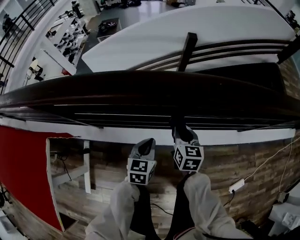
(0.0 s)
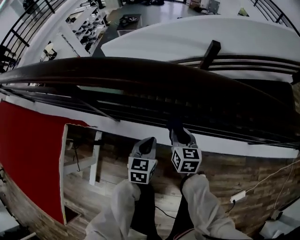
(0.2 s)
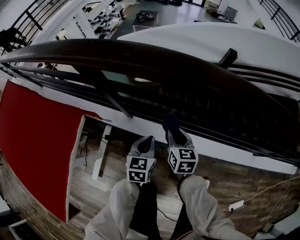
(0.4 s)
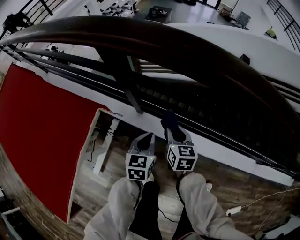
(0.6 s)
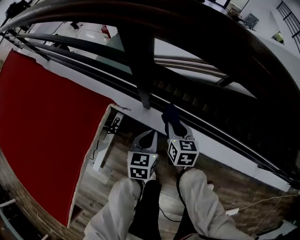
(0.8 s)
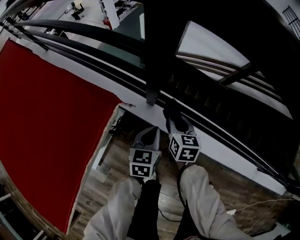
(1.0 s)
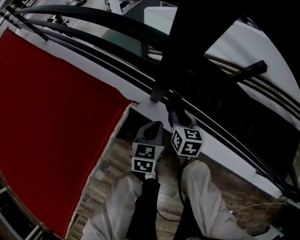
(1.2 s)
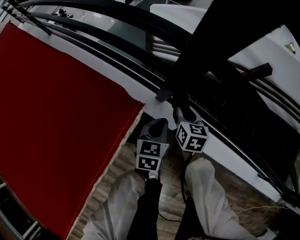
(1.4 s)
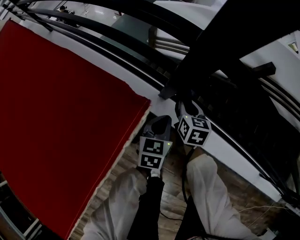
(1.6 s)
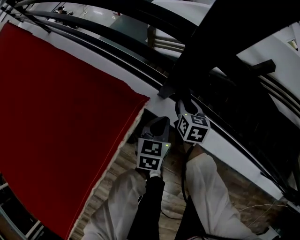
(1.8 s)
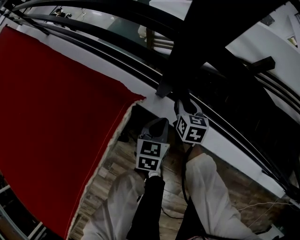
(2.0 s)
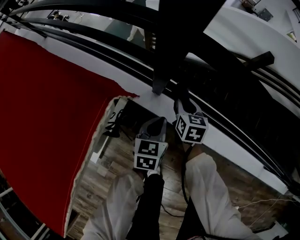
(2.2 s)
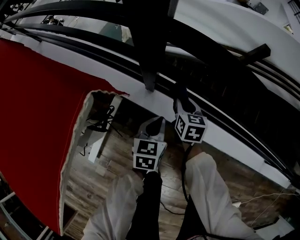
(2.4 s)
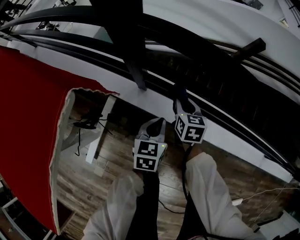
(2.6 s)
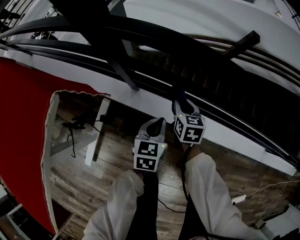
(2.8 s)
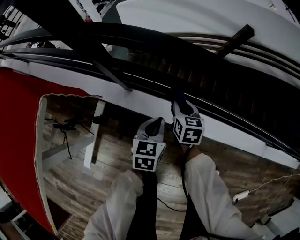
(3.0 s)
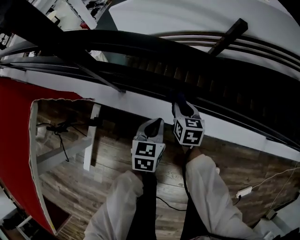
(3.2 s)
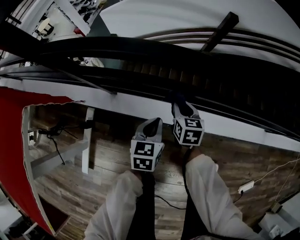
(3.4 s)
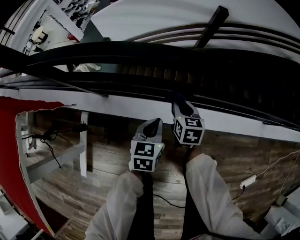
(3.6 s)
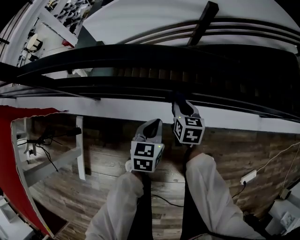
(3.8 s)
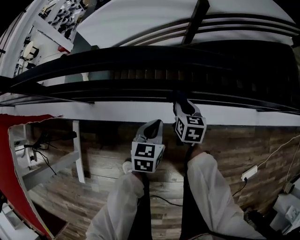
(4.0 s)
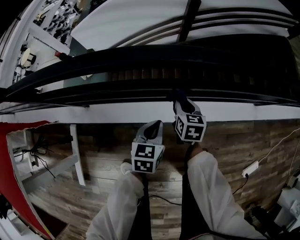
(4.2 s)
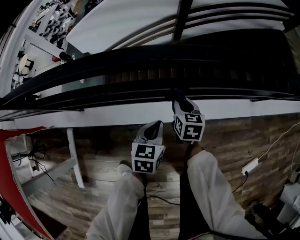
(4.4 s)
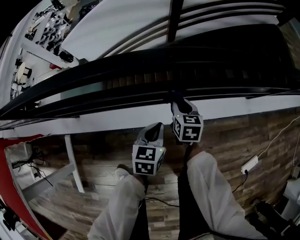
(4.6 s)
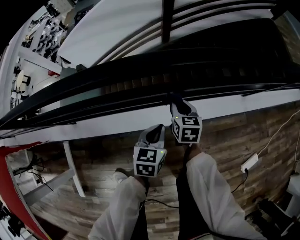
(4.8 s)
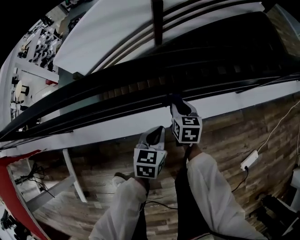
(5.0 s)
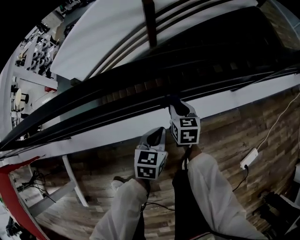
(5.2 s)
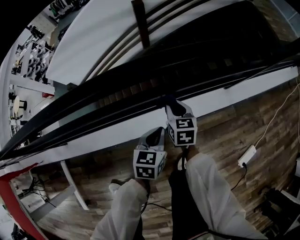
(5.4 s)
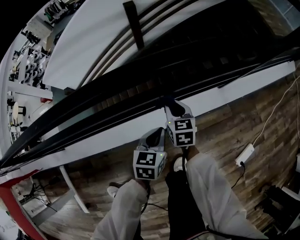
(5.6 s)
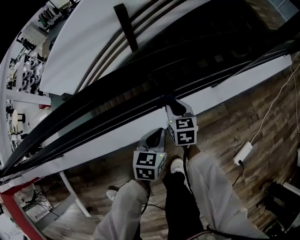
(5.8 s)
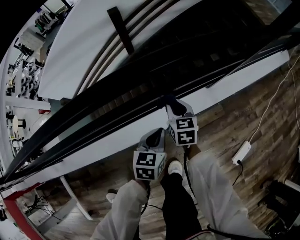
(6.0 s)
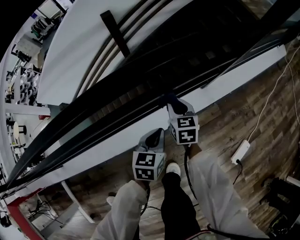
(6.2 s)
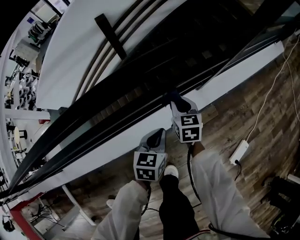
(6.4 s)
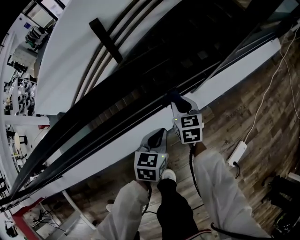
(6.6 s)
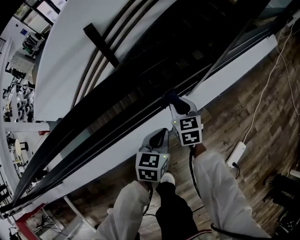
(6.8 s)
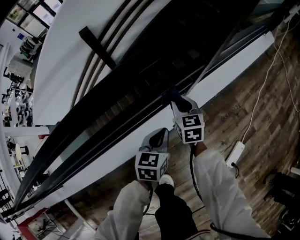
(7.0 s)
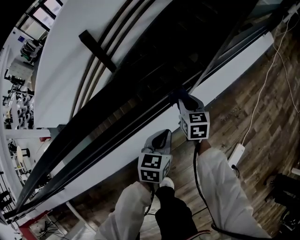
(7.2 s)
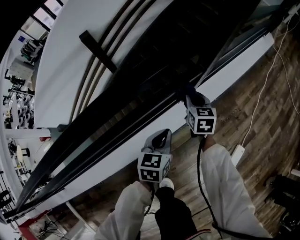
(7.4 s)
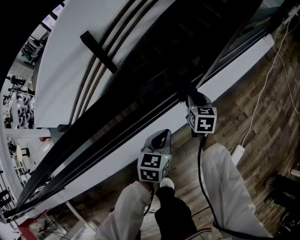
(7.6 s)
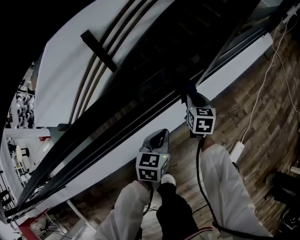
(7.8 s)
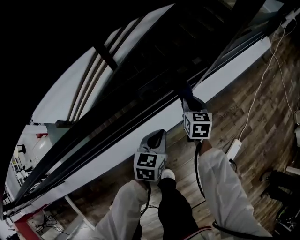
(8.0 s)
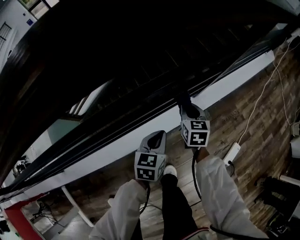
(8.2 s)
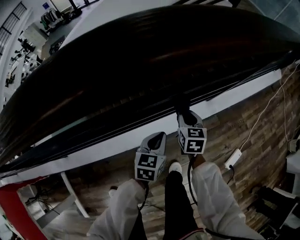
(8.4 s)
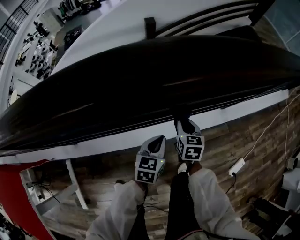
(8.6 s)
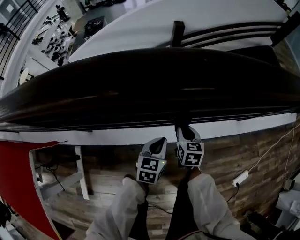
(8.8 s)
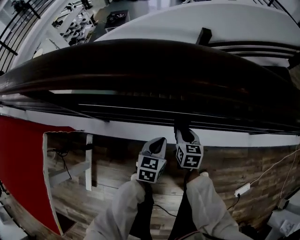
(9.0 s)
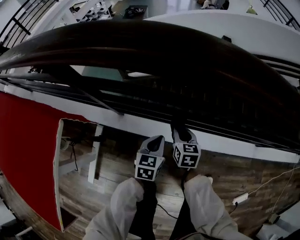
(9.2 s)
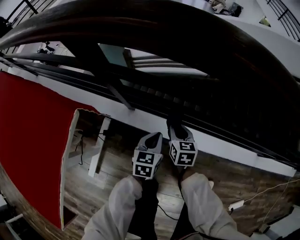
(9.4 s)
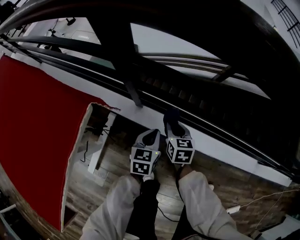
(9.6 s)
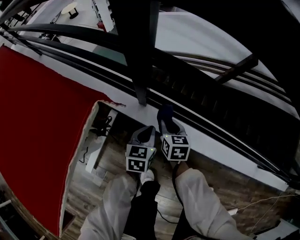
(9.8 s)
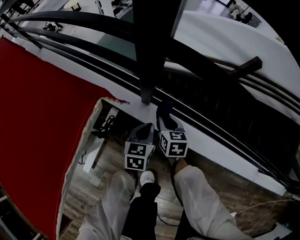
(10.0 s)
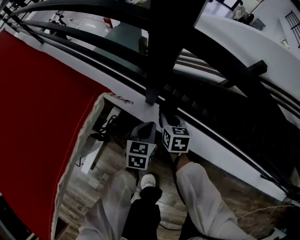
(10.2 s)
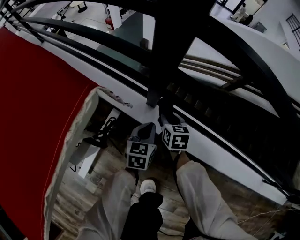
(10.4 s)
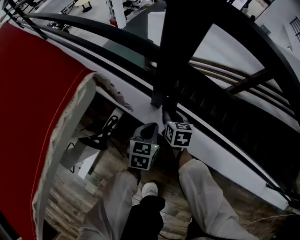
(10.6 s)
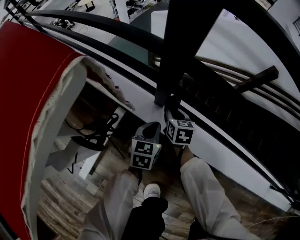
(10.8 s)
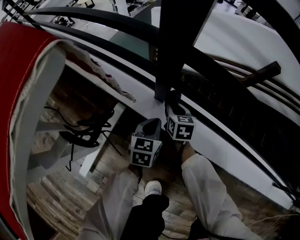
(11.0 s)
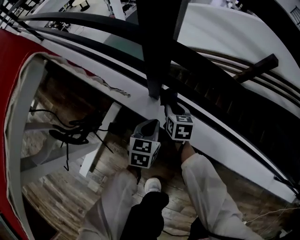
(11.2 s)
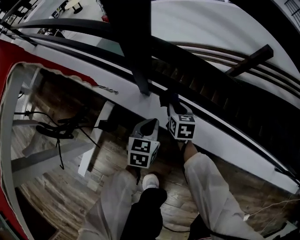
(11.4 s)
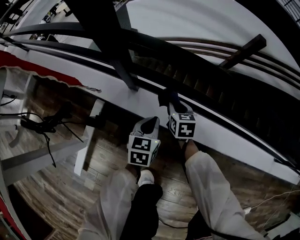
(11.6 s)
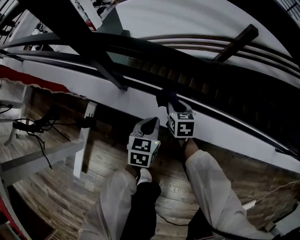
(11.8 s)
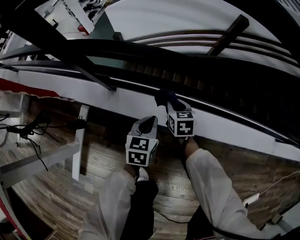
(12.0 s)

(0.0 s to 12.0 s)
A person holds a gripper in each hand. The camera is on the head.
0.0 s - 1.6 s: The pair of grippers is taken approximately 50 cm. The left gripper rotates roughly 30 degrees. The right gripper rotates some 30 degrees.
1.6 s - 3.0 s: Both grippers travel together to the right, some 20 cm.
3.0 s - 4.4 s: The grippers both shift to the right by about 35 cm. The right gripper turns by approximately 20 degrees, while the left gripper rotates some 20 degrees.
4.4 s - 6.0 s: The two grippers go some 35 cm to the right.
6.0 s - 7.6 s: Both grippers travel together to the right and forward, approximately 25 cm.
7.6 s - 9.0 s: The two grippers travel together, about 70 cm. The left gripper swivels about 30 degrees. The right gripper changes its angle by some 40 degrees.
9.0 s - 10.4 s: The pair of grippers is taken about 40 cm. The right gripper turns by roughly 30 degrees. Meanwhile the left gripper turns by about 30 degrees.
10.4 s - 12.0 s: The two grippers go some 20 cm to the right.

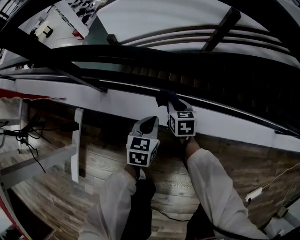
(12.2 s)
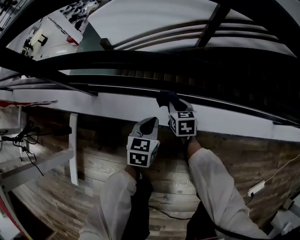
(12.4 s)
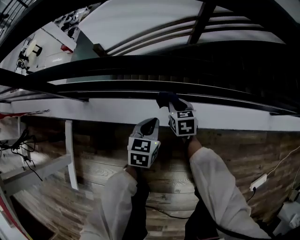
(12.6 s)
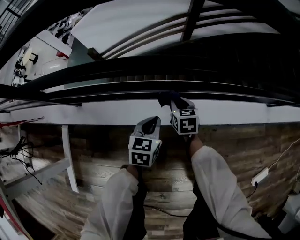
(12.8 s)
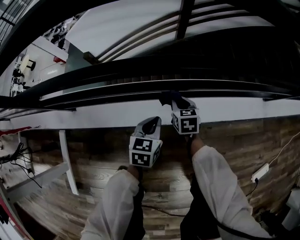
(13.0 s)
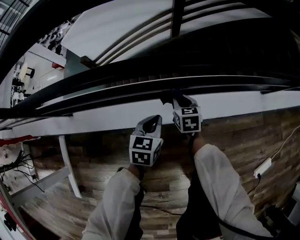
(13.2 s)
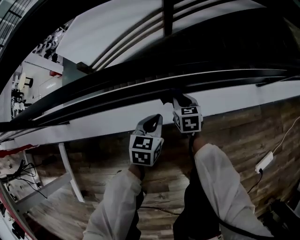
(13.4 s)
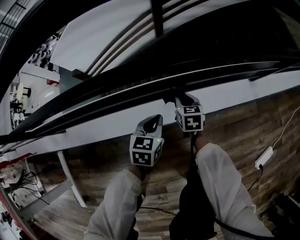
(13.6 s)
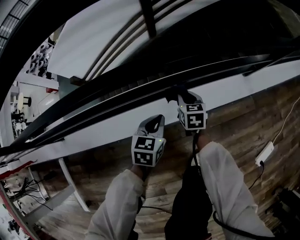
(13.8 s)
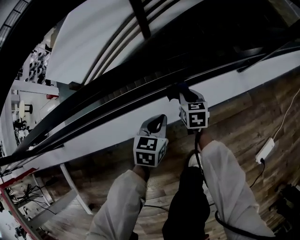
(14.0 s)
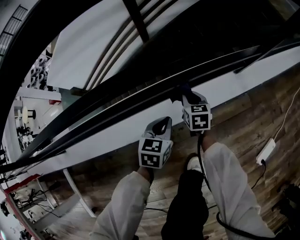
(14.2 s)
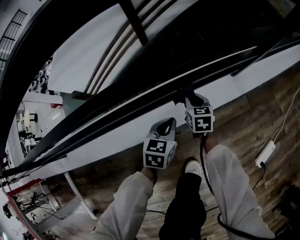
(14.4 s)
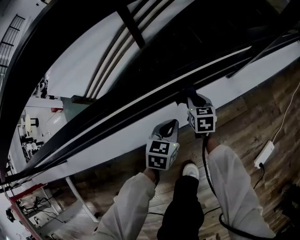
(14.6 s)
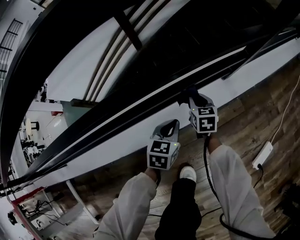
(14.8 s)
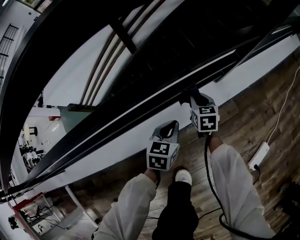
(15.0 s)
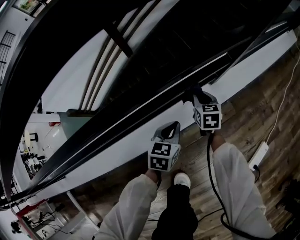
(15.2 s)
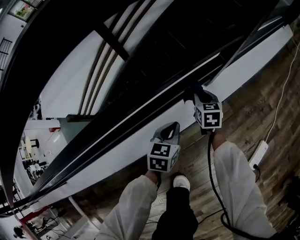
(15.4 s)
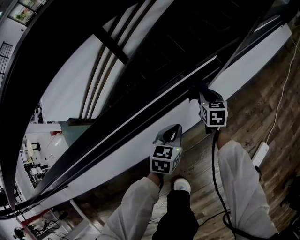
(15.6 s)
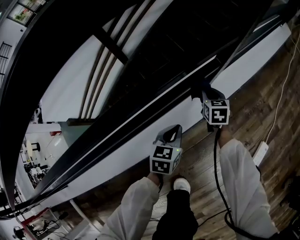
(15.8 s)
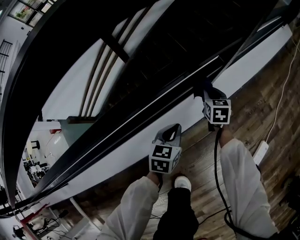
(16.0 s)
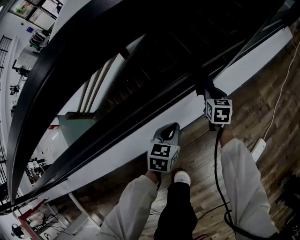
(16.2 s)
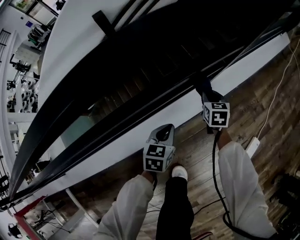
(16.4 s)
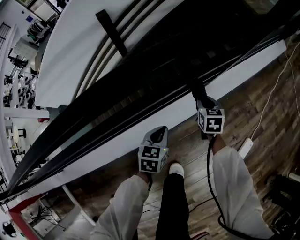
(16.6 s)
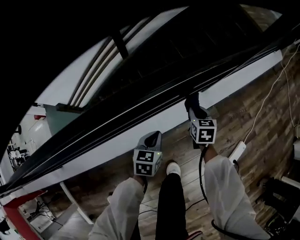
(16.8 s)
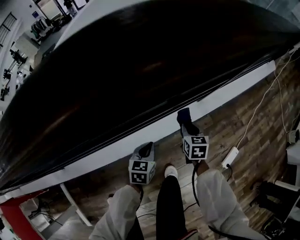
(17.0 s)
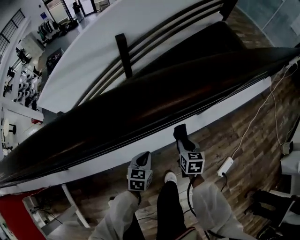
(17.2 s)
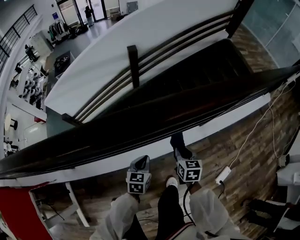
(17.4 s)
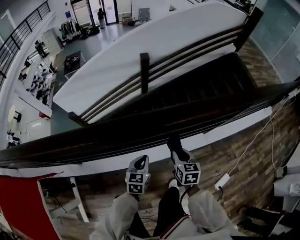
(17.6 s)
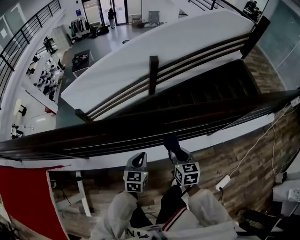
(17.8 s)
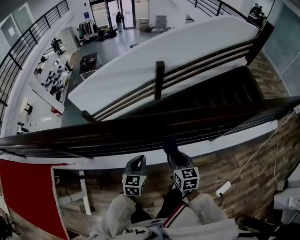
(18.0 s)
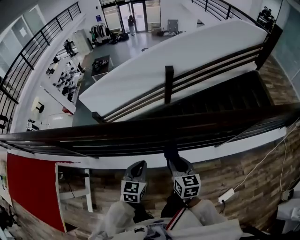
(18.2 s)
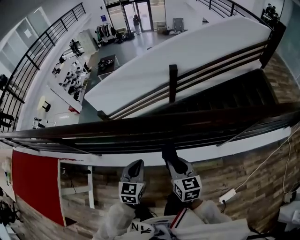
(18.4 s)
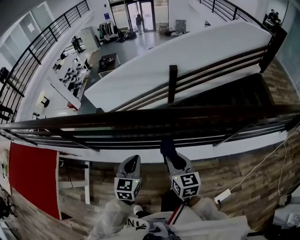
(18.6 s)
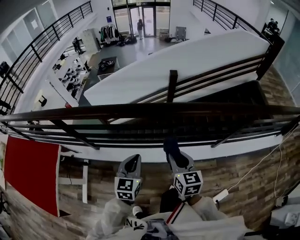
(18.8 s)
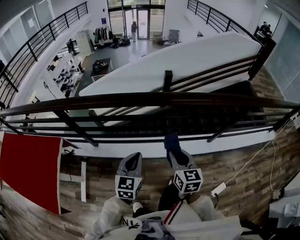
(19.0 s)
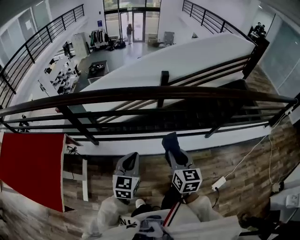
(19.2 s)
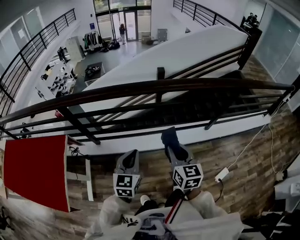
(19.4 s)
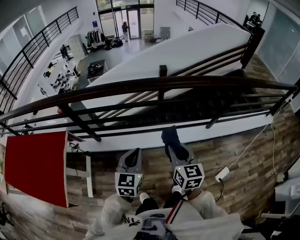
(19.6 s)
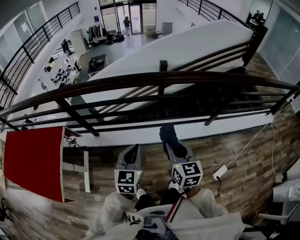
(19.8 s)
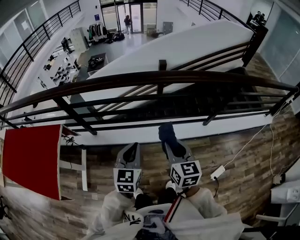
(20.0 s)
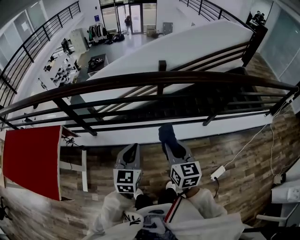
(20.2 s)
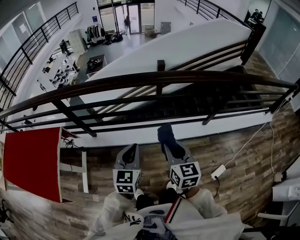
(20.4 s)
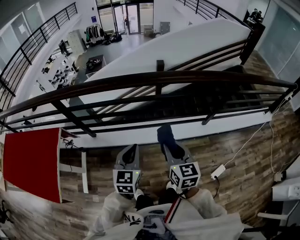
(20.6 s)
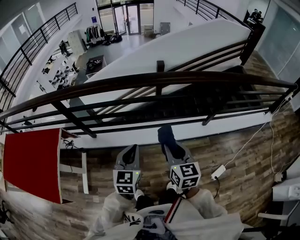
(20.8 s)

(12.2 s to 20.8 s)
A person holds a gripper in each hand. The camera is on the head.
12.2 s - 13.6 s: The left gripper changes place by some 35 cm, and changes its angle by approximately 20 degrees, while the right gripper shifts by approximately 40 cm, and rotates roughly 20 degrees.
13.6 s - 15.0 s: The two grippers go about 35 cm to the right and forward.
15.0 s - 16.6 s: The left gripper is displaced upward by some 10 cm, while the right gripper goes approximately 10 cm upward and to the right.
16.6 s - 18.0 s: Both grippers travel together upward, about 40 cm. The right gripper changes its angle by some 30 degrees; the left gripper turns by approximately 30 degrees.
18.0 s - 19.4 s: Both grippers travel together backward and upward, roughly 30 cm.
19.4 s - 20.8 s: The grippers both shift to the right by about 5 cm.

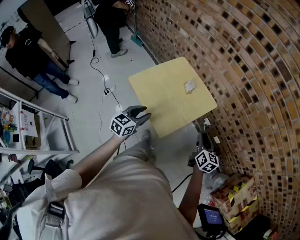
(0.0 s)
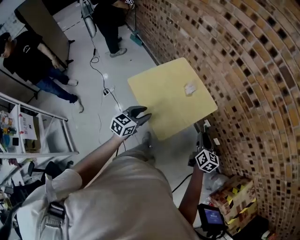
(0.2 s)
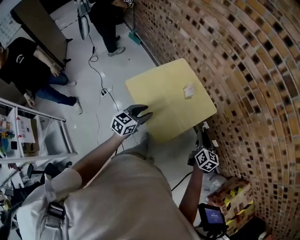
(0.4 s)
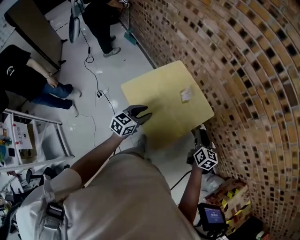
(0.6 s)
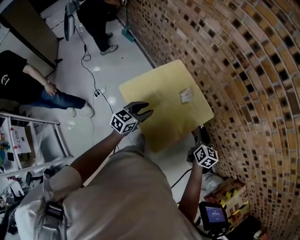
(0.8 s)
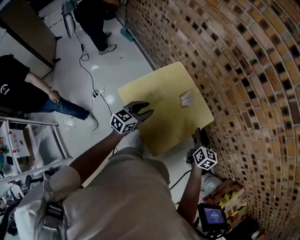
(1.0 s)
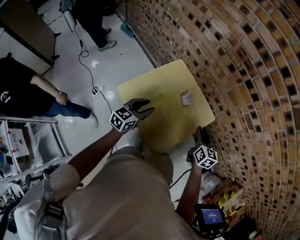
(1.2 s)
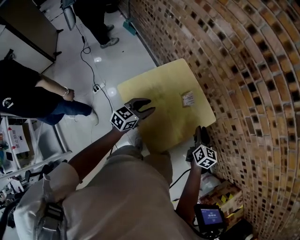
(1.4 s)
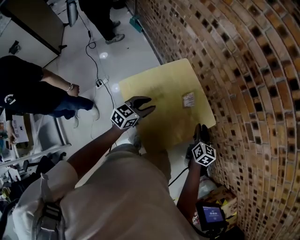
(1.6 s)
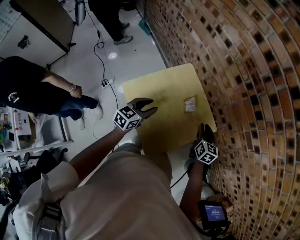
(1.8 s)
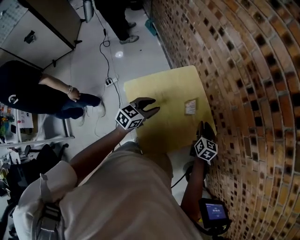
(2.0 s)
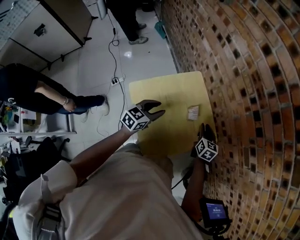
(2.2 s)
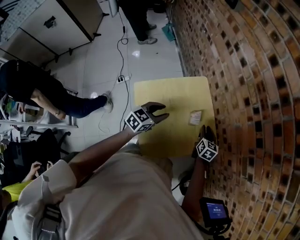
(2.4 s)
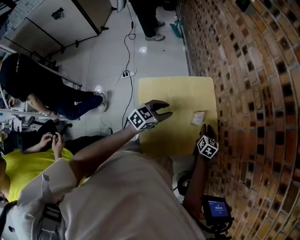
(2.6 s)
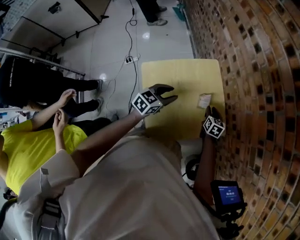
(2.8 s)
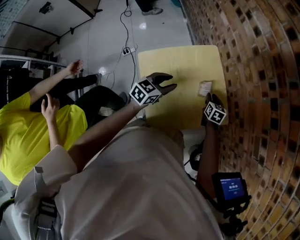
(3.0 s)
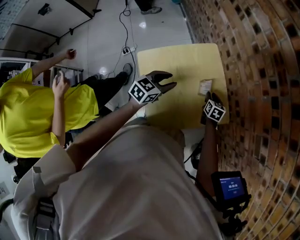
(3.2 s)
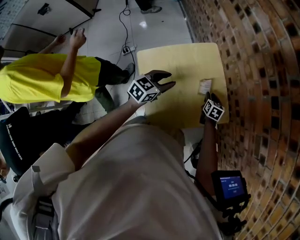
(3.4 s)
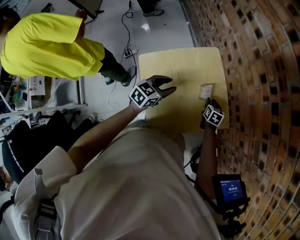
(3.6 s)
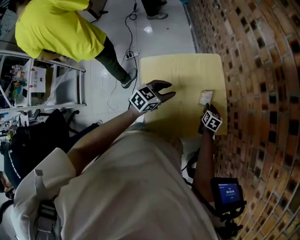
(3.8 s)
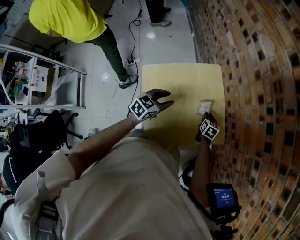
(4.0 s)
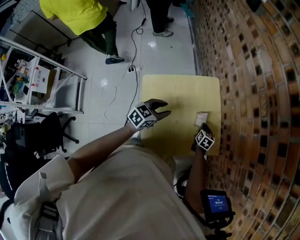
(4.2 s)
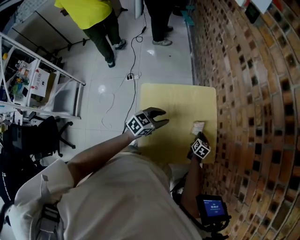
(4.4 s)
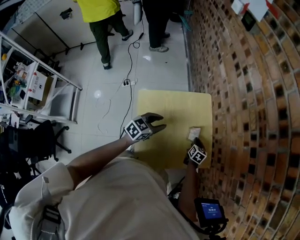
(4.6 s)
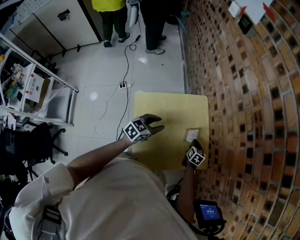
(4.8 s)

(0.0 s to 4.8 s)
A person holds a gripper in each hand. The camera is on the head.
0.0 s - 1.6 s: The right gripper heads forward and to the left, covering some 25 cm. The left gripper heads forward, covering some 25 cm.
1.6 s - 3.2 s: The right gripper moves downward and forward, some 20 cm, and changes its angle by approximately 30 degrees. Meanwhile the left gripper moves approximately 5 cm.
3.2 s - 4.8 s: The right gripper closes its fingers.
